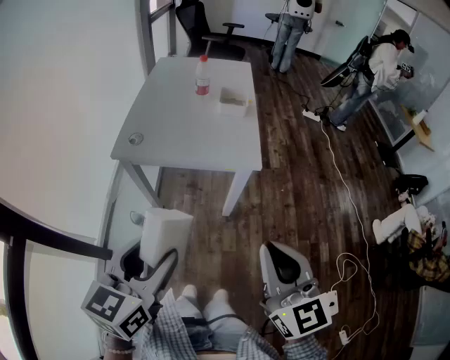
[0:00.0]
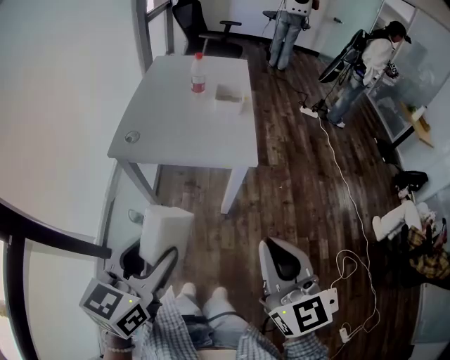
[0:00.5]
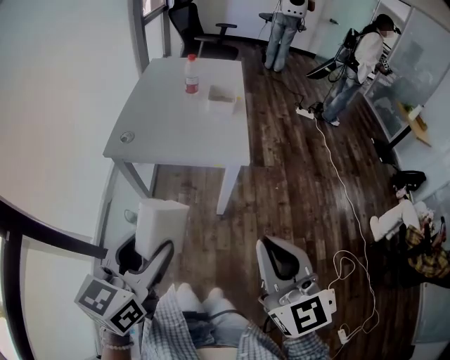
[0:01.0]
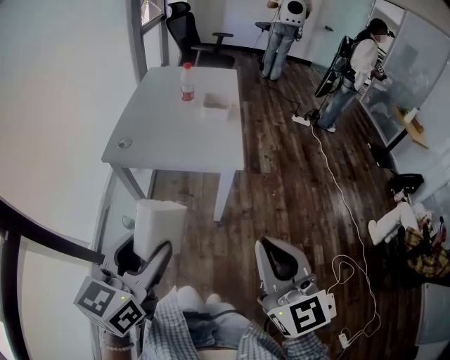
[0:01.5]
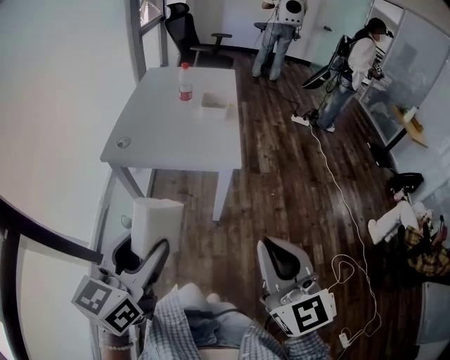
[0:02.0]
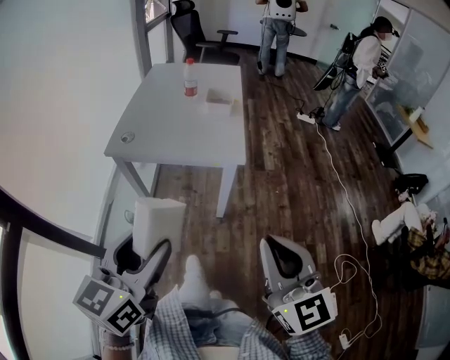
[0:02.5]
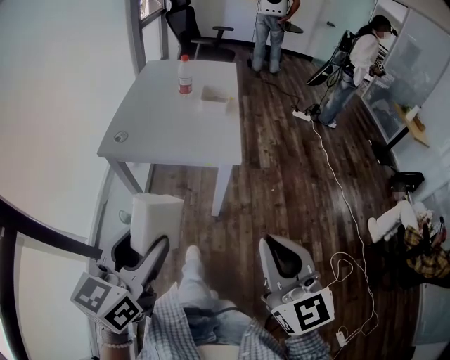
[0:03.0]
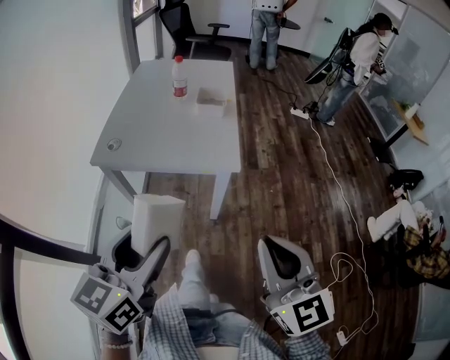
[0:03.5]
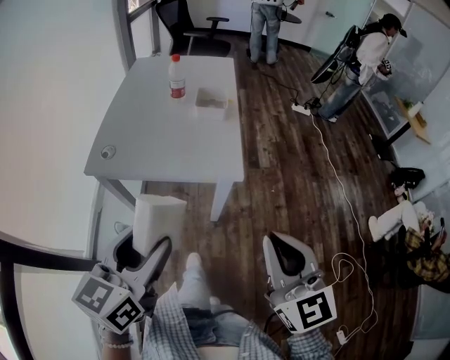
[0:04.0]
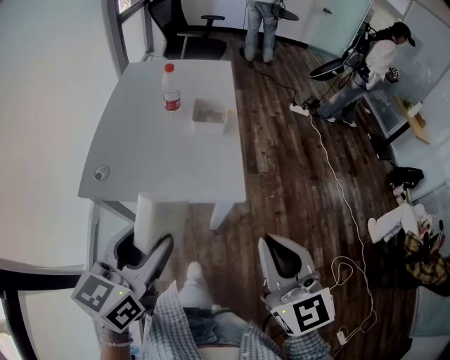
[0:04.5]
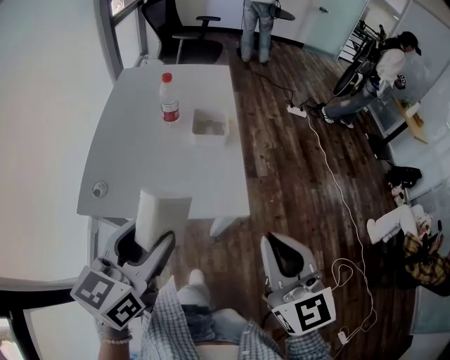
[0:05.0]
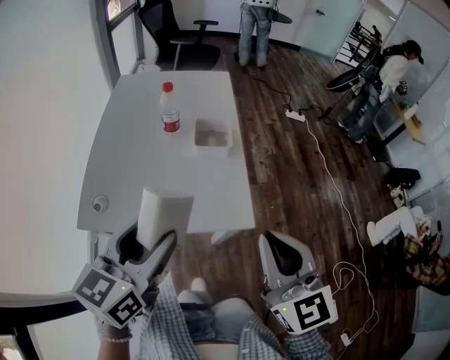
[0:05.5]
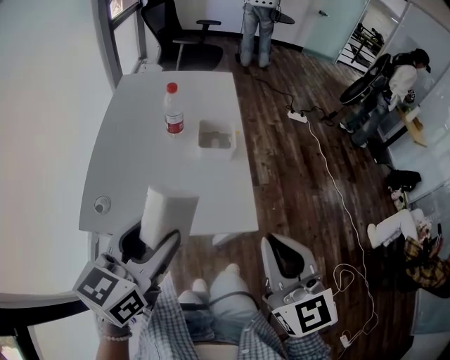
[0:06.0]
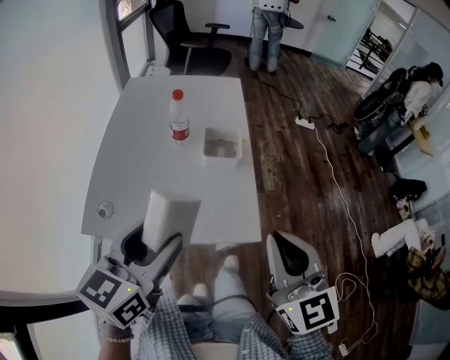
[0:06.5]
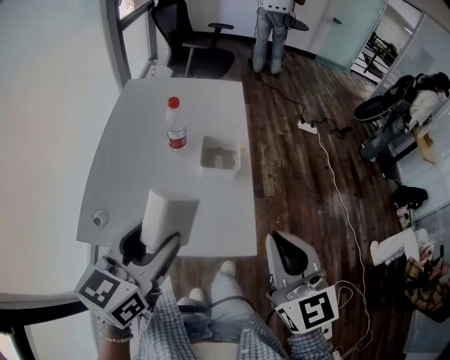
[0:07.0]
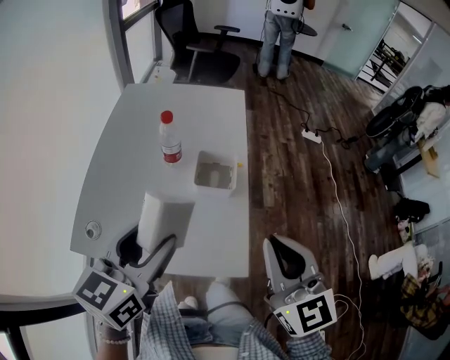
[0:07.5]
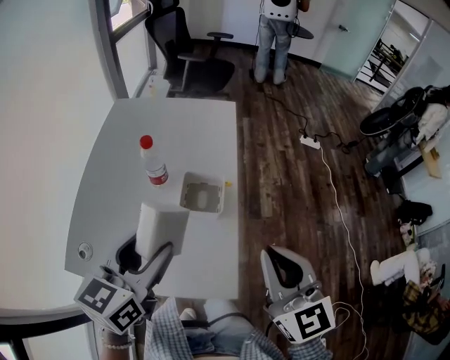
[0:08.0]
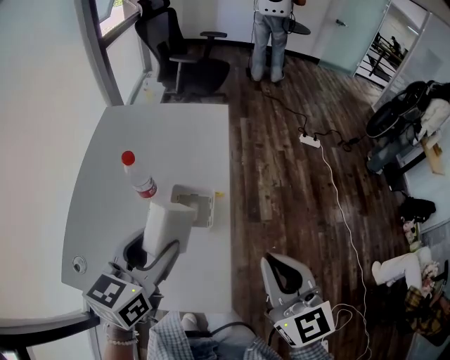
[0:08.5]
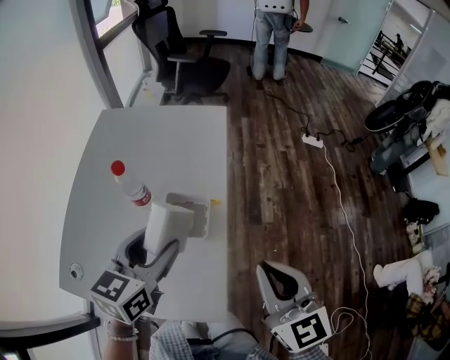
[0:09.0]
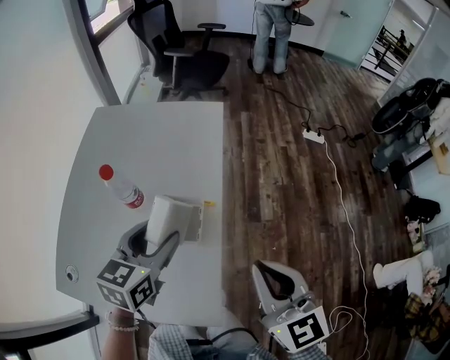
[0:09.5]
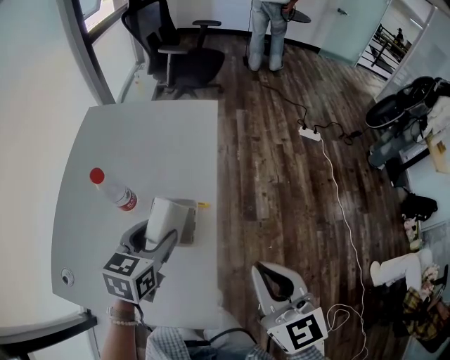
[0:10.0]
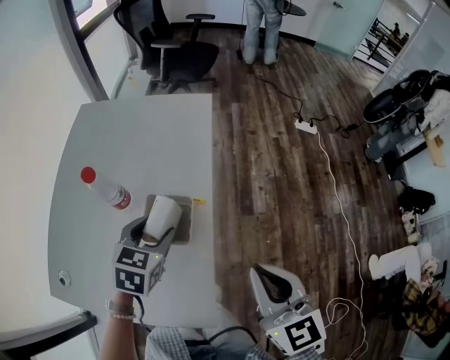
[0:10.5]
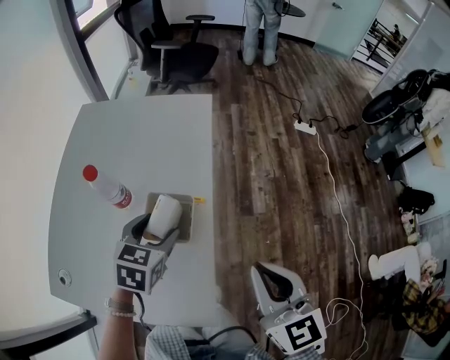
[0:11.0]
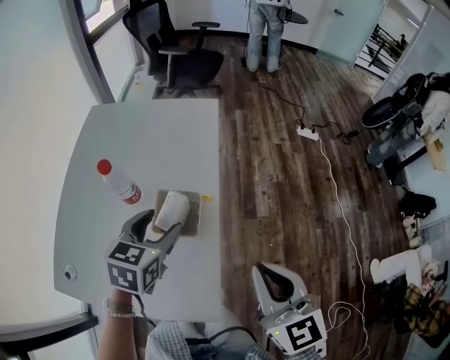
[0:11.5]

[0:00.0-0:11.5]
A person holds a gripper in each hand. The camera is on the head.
0:00.0 to 0:02.0: The left gripper shifts by some 5 cm. The right gripper shifts some 5 cm to the right.
0:02.0 to 0:04.0: The grippers both shift forward by some 10 cm.
0:04.0 to 0:06.0: The left gripper moves forward, approximately 20 cm. Meanwhile the right gripper goes some 15 cm forward and to the left.
0:06.0 to 0:07.5: Both grippers travel together forward, roughly 15 cm.
0:07.5 to 0:09.5: The right gripper goes approximately 15 cm forward and to the right. The left gripper travels forward, to the right and downward by some 20 cm.

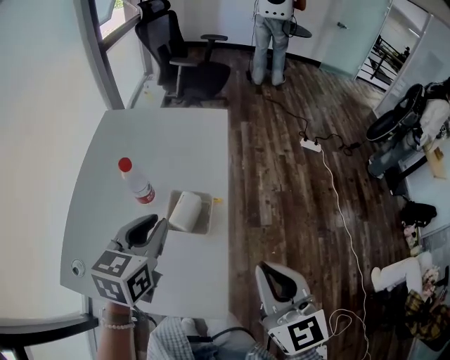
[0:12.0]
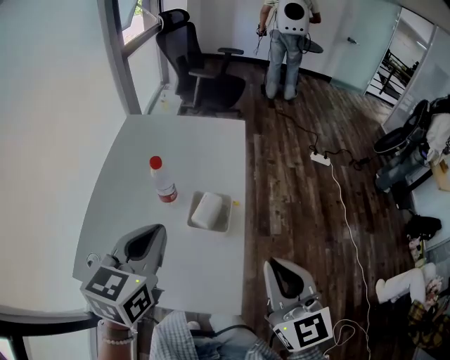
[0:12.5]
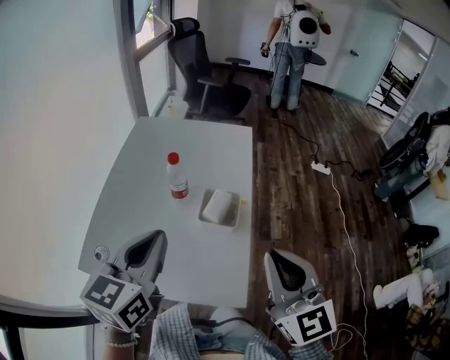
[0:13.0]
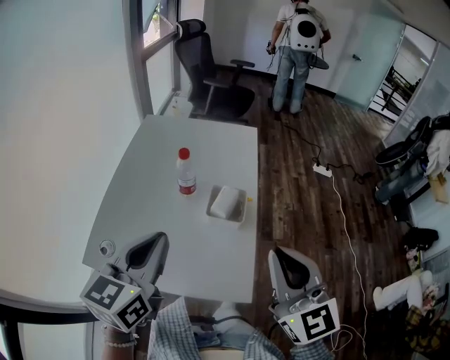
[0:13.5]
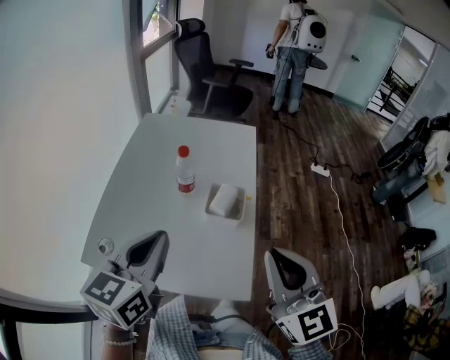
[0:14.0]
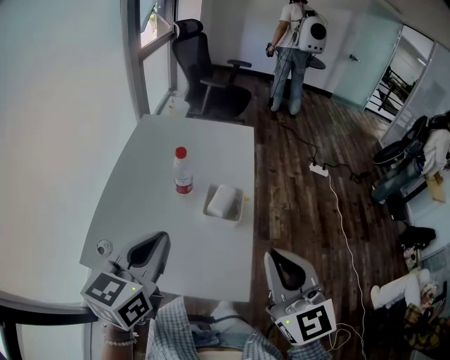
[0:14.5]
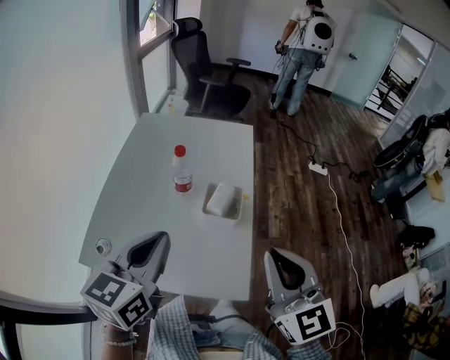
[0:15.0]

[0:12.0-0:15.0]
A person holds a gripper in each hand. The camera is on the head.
0:12.0 to 0:13.5: The left gripper is displaced backward, upward and to the left by roughly 20 cm; the right gripper heads upward and to the left, covering some 10 cm.
0:13.5 to 0:15.0: Neither gripper changes place.

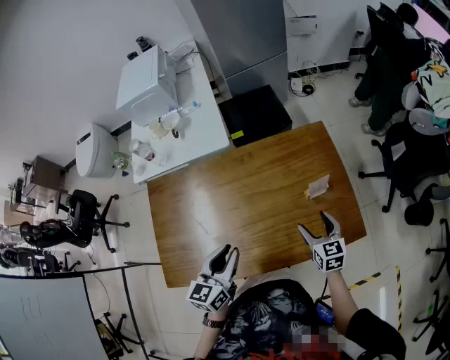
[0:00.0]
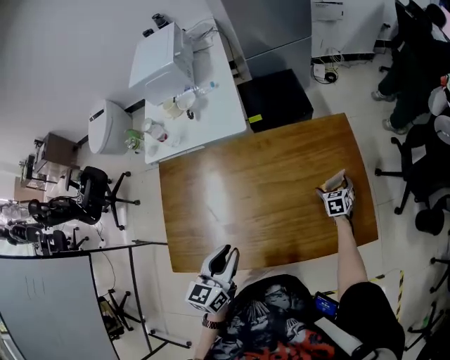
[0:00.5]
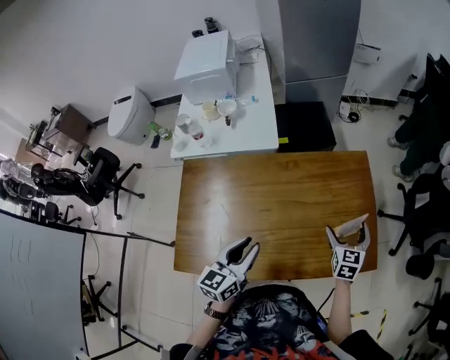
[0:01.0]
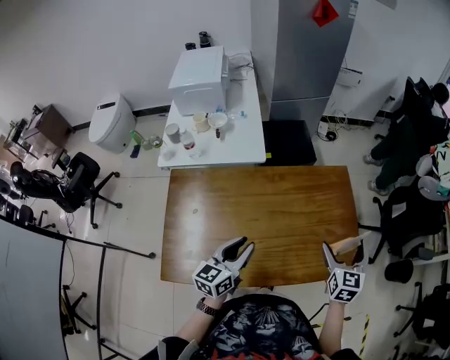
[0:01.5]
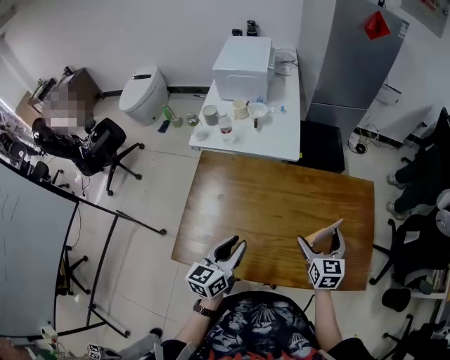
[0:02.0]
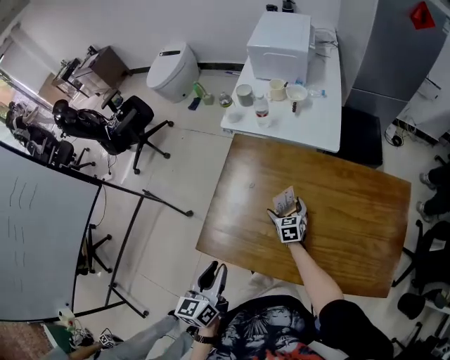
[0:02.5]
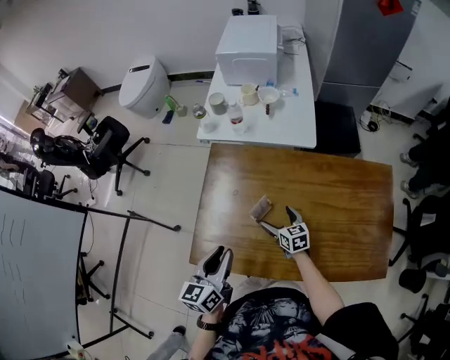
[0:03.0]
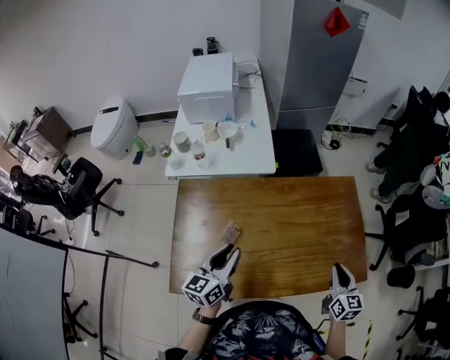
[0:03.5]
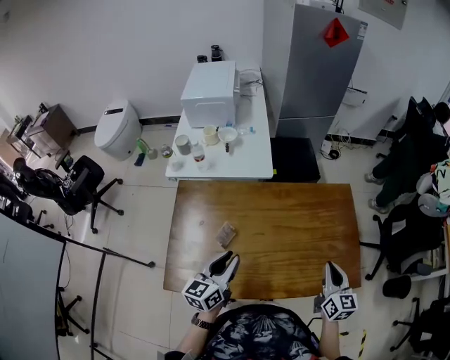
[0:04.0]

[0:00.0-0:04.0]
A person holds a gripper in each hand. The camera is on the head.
0:00.0 to 0:02.0: The right gripper moves up and down over some 35 cm, changing direction 2 times, and opens its fingers. Meanwhile the left gripper shifts roughly 15 cm to the left.
0:02.0 to 0:04.0: The right gripper travels downward and back again, some 25 cm each way, and closes.

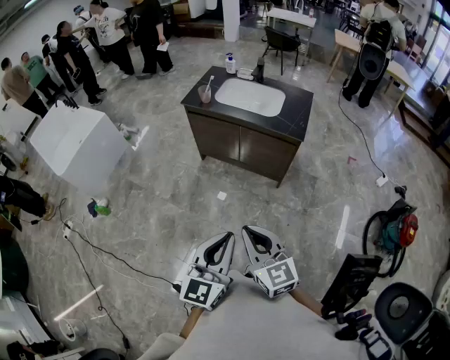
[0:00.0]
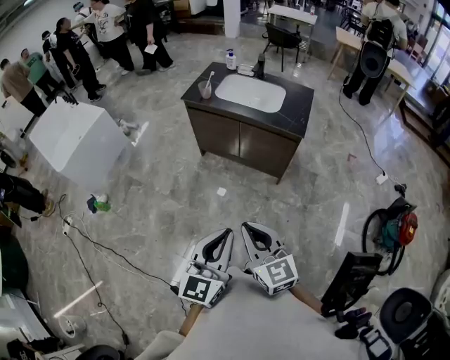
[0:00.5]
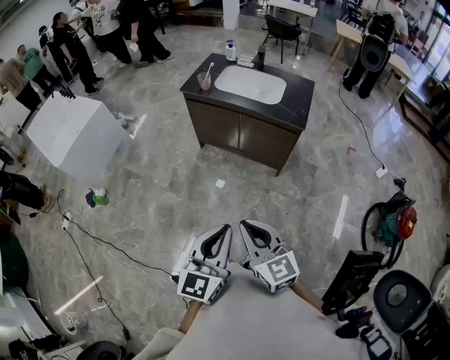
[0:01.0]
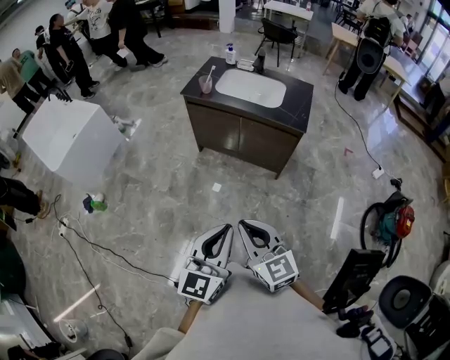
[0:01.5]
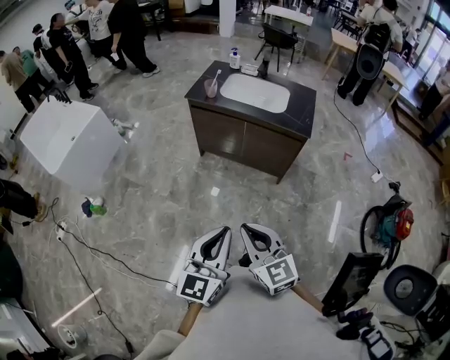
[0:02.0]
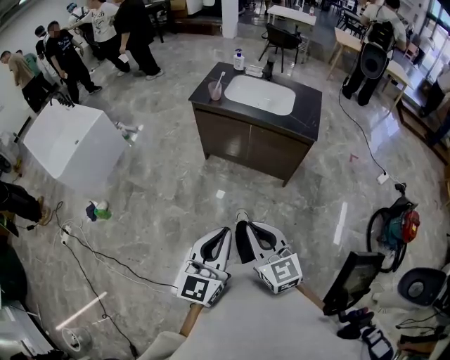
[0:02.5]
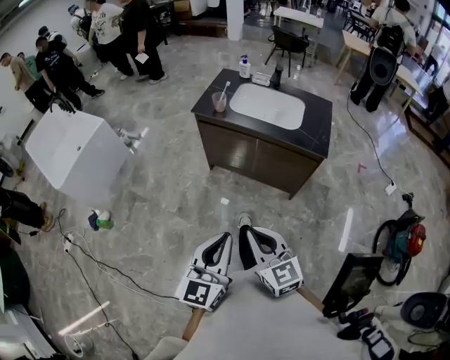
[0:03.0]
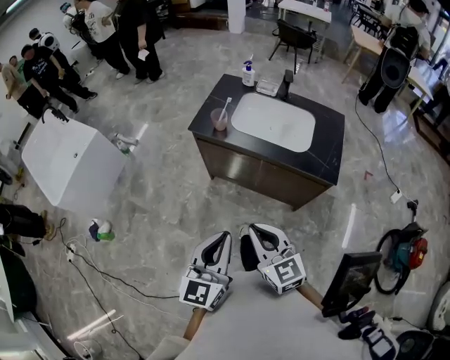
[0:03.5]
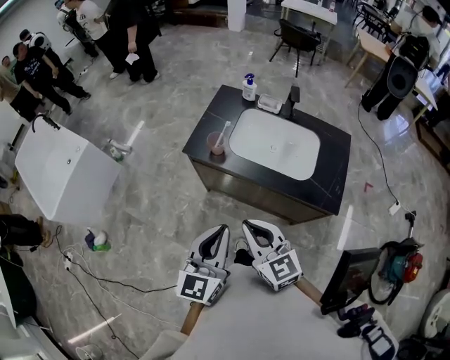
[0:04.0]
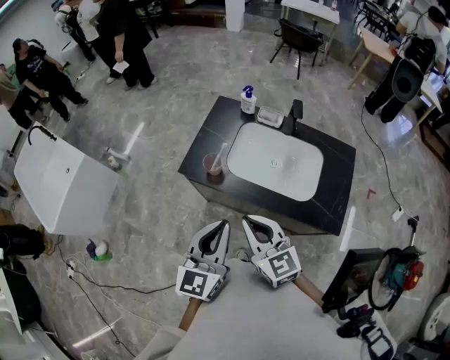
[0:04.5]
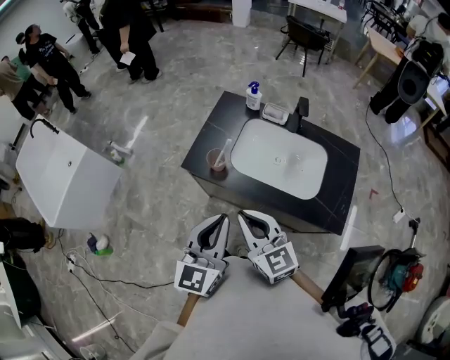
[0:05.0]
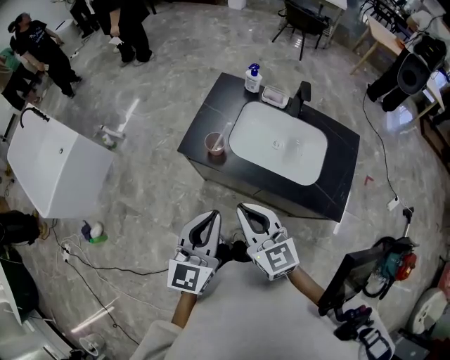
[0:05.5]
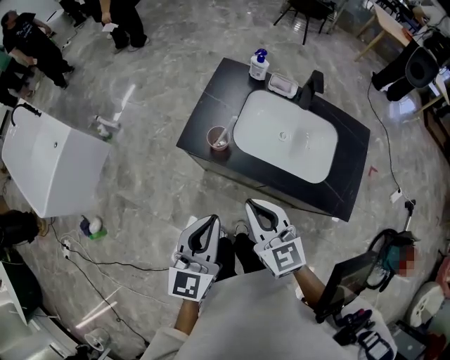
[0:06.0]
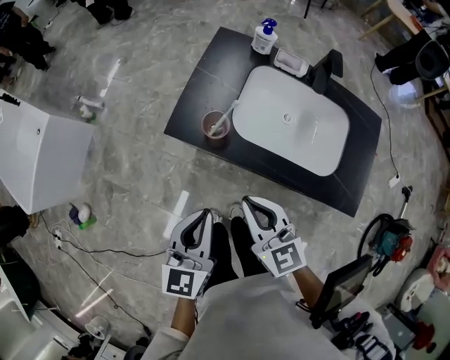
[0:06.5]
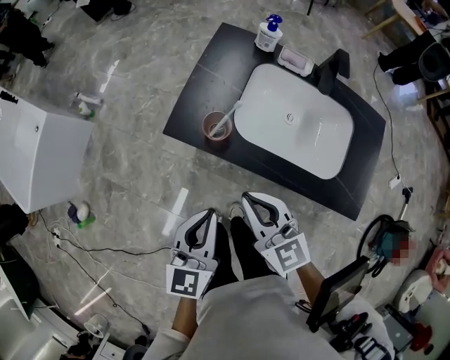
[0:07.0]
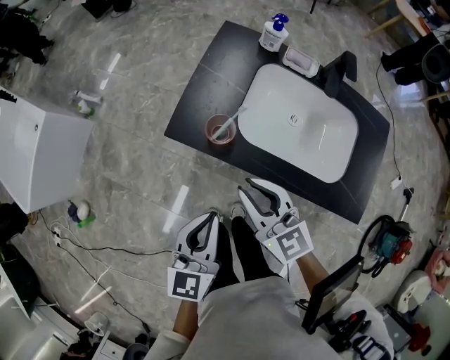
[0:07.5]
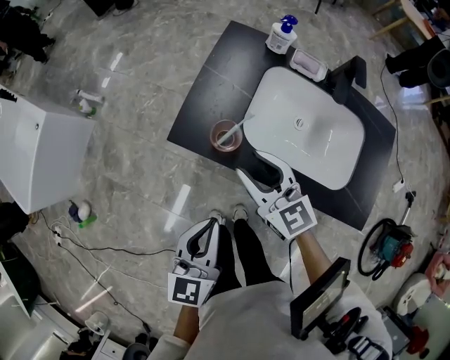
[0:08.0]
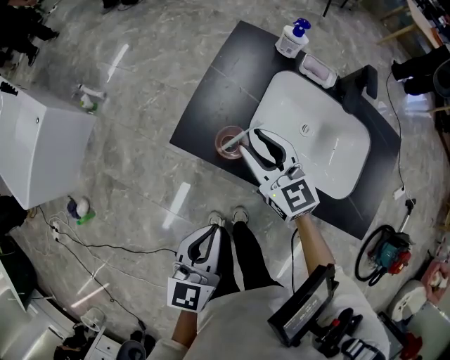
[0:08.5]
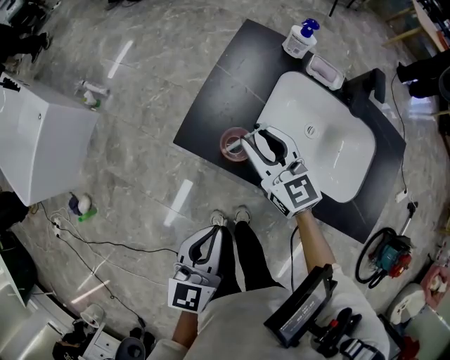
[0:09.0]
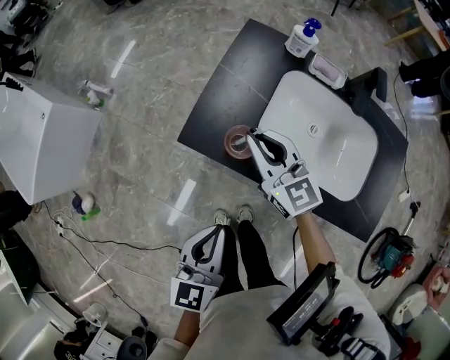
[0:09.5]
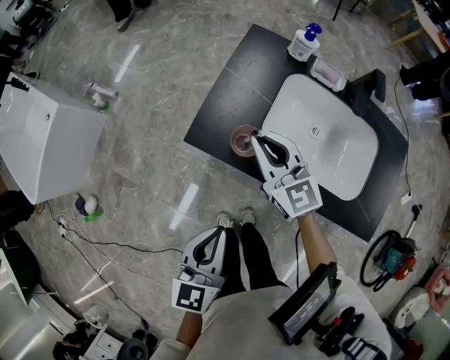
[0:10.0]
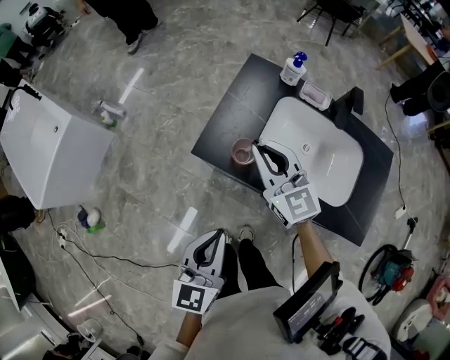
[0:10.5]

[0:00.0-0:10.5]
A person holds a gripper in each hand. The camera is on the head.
0:00.0 to 0:02.0: The two grippers go some 5 cm to the left.
0:02.0 to 0:04.0: The grippers both shift forward by approximately 40 cm.
0:04.0 to 0:06.5: The left gripper shifts roughly 15 cm forward and downward, while the right gripper moves forward, about 15 cm.
0:06.5 to 0:08.5: The right gripper goes about 15 cm forward, and opens its fingers.
0:08.5 to 0:10.5: The left gripper travels upward by approximately 5 cm, while the right gripper travels upward by some 10 cm, and closes its fingers.
